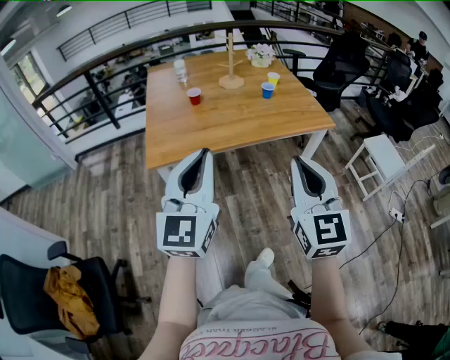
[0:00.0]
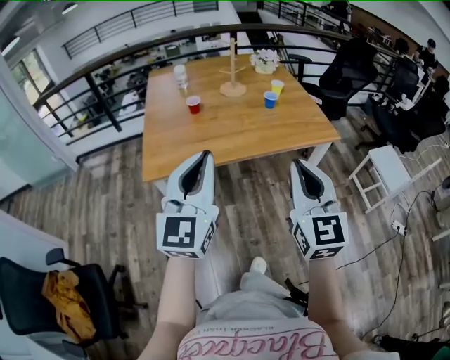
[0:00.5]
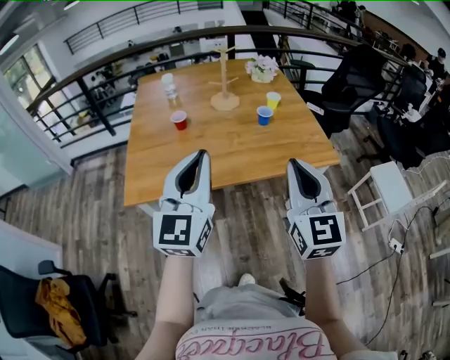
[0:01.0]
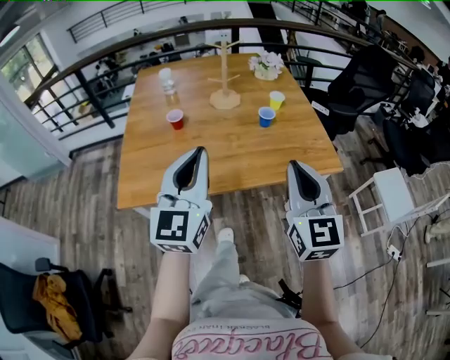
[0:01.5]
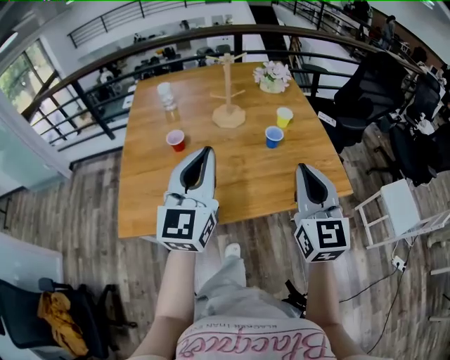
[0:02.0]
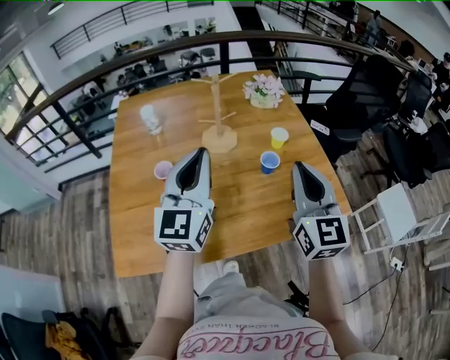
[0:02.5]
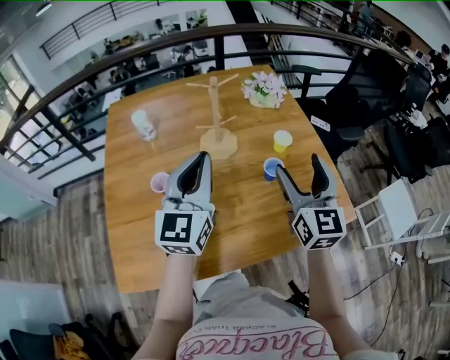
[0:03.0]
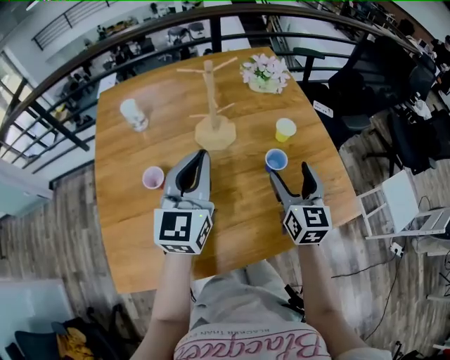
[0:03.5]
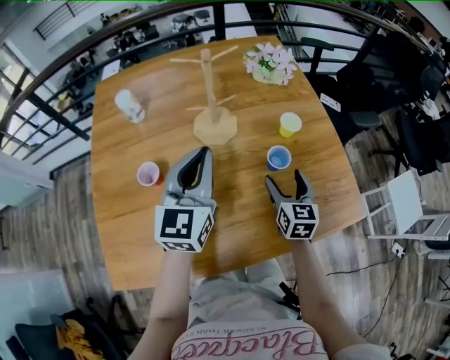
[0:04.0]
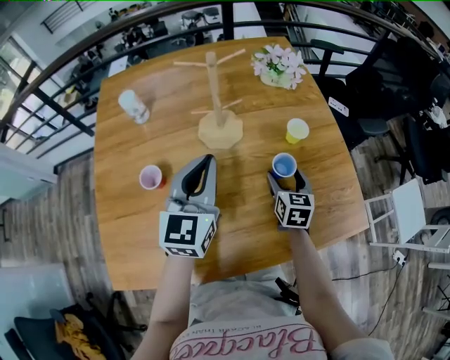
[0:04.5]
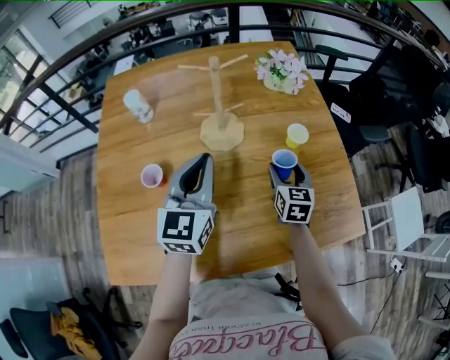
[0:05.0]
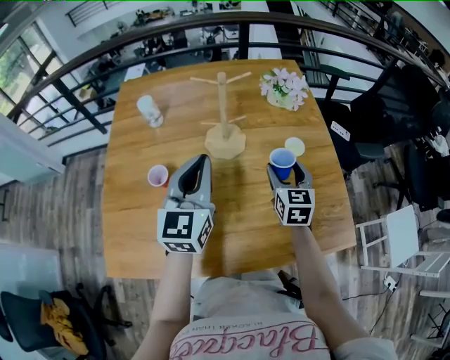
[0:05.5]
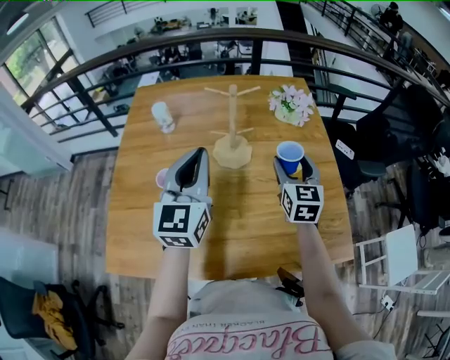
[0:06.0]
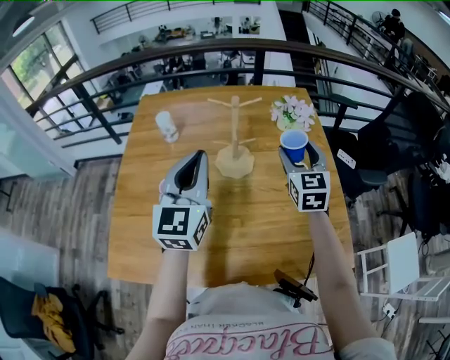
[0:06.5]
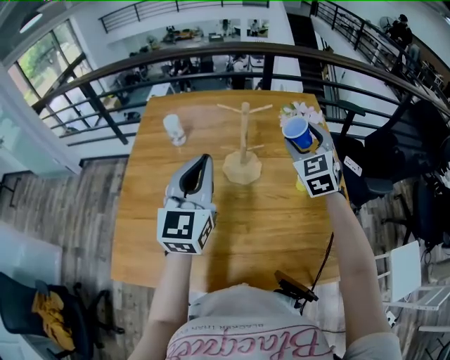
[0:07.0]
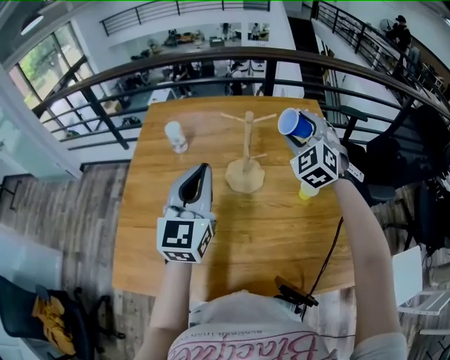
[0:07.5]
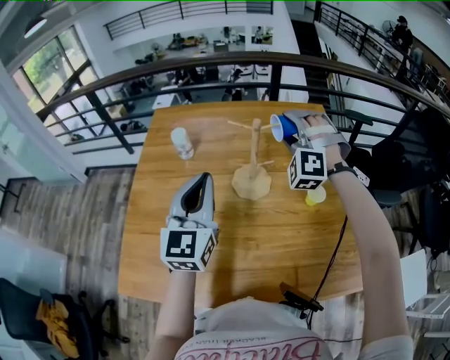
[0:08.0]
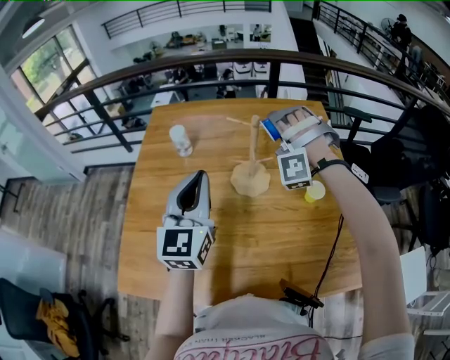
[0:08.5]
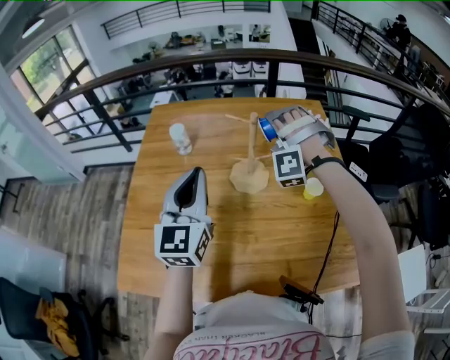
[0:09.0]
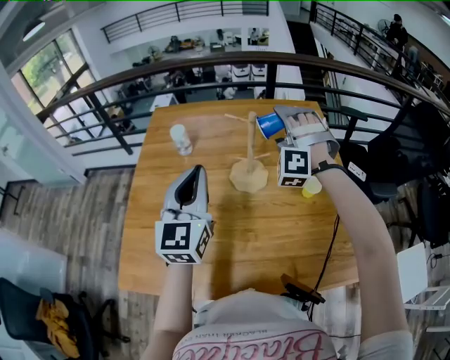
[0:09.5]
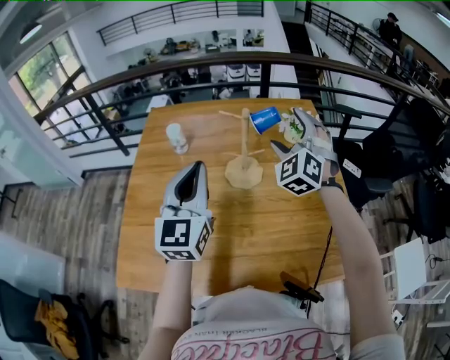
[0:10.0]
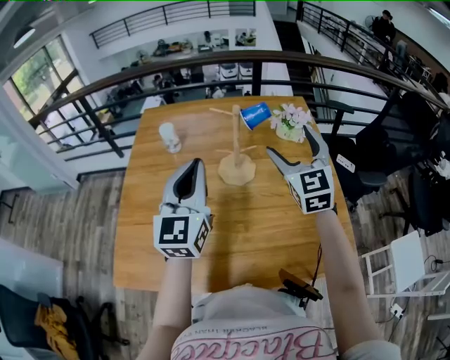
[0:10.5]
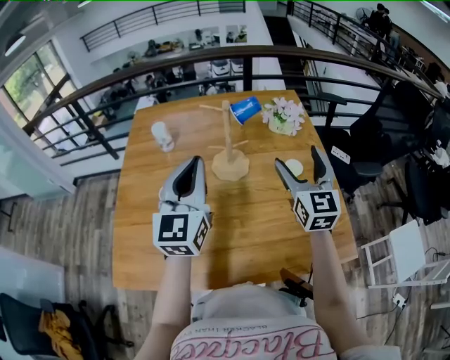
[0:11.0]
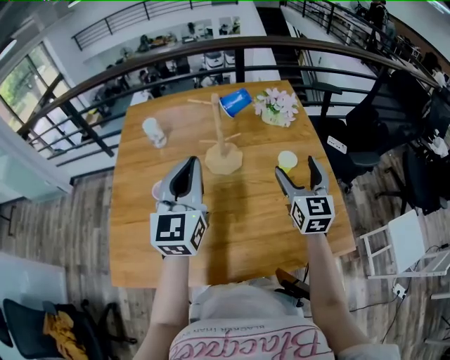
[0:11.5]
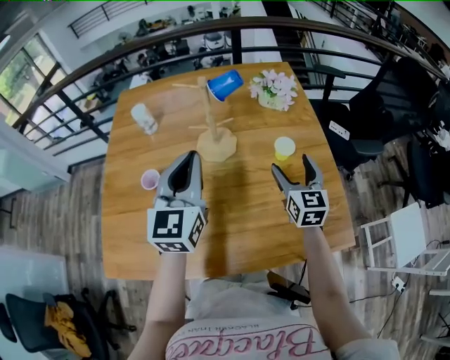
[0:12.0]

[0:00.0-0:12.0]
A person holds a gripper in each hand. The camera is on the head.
0:00.0 to 0:02.0: Both grippers move forward, some 35 cm.
0:02.0 to 0:04.0: The left gripper moves forward, about 25 cm; the right gripper heads forward and downward, covering roughly 35 cm, changes its angle by about 30 degrees, and opens up.
0:04.0 to 0:06.0: The left gripper shifts some 10 cm upward. The right gripper goes some 15 cm upward and forward.
0:06.0 to 0:08.0: The right gripper shifts approximately 20 cm forward, upward and to the left, and rolls counterclockwise, seen from behind, by approximately 90 degrees.
0:08.0 to 0:10.0: The right gripper goes some 5 cm backward, turns by roughly 30 degrees, and opens its fingers.
0:10.0 to 0:12.0: The left gripper is displaced to the right and downward by roughly 10 cm. The right gripper shifts roughly 25 cm downward, to the right and backward, and twists some 60 degrees clockwise, seen from behind.

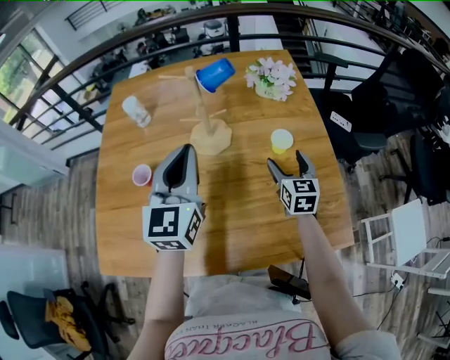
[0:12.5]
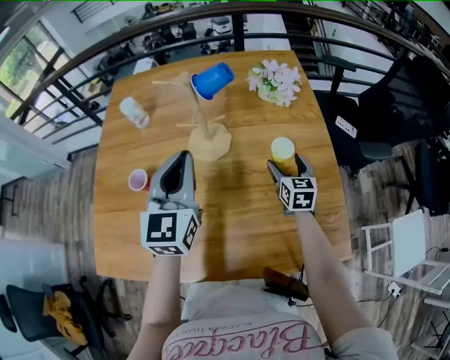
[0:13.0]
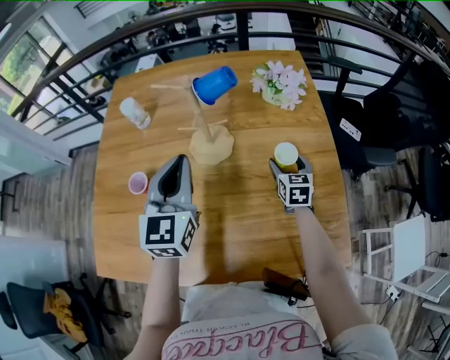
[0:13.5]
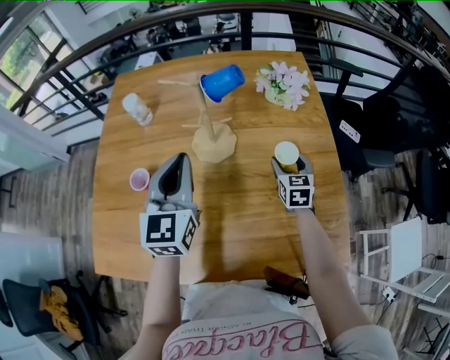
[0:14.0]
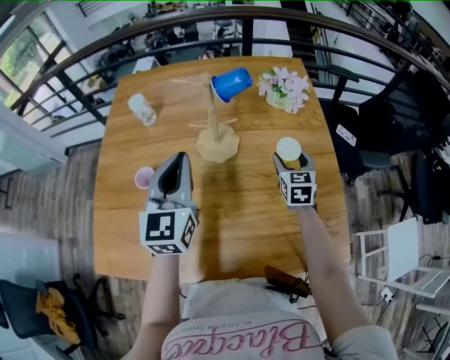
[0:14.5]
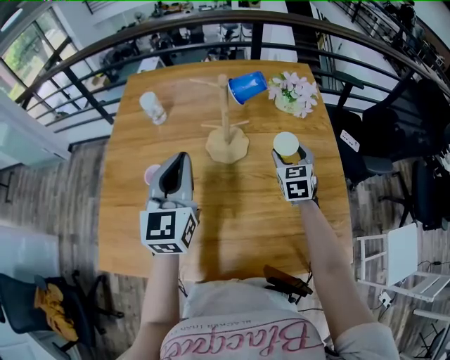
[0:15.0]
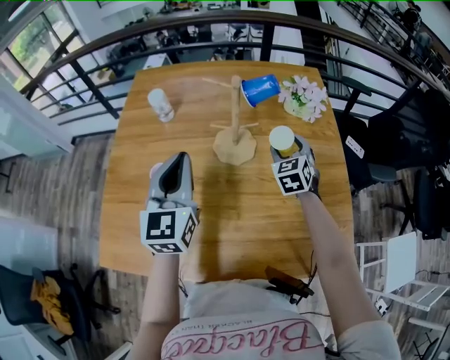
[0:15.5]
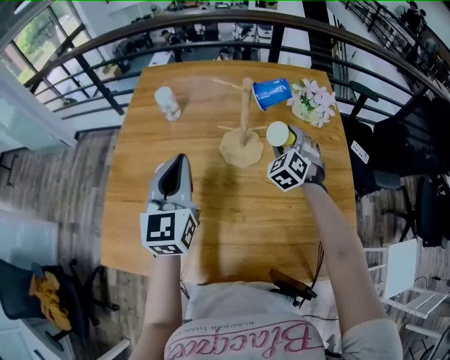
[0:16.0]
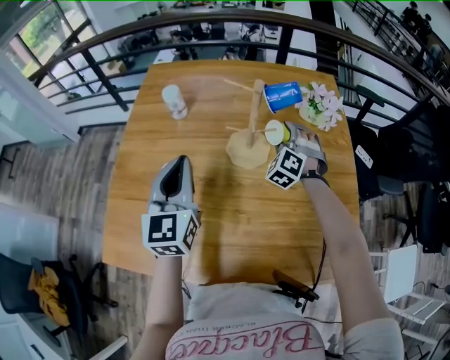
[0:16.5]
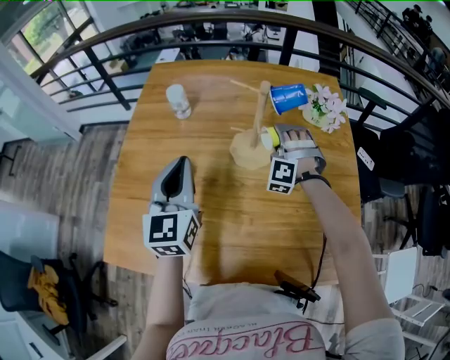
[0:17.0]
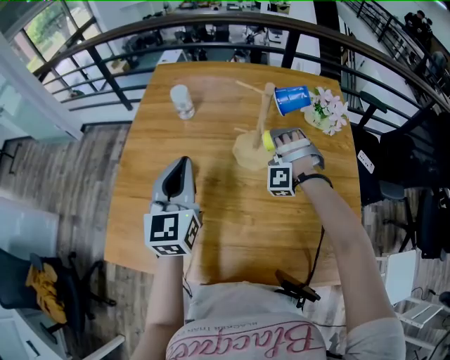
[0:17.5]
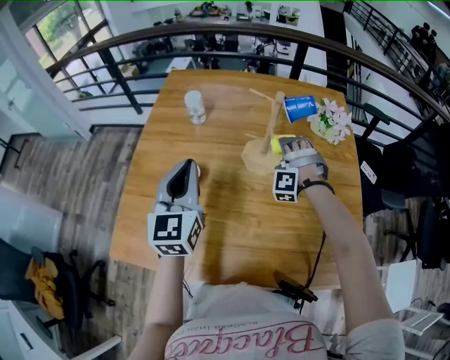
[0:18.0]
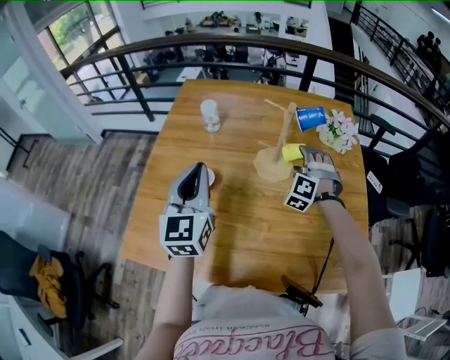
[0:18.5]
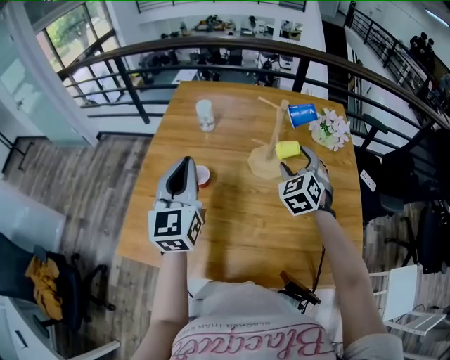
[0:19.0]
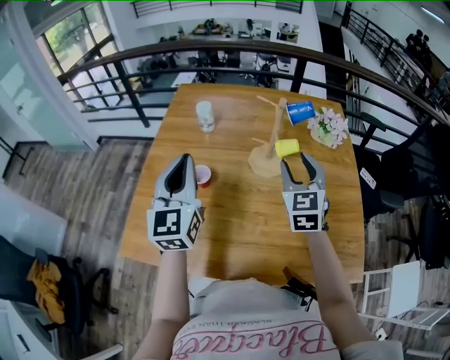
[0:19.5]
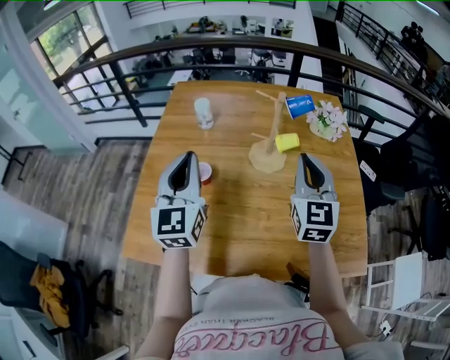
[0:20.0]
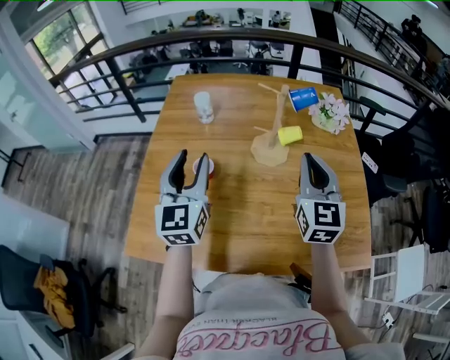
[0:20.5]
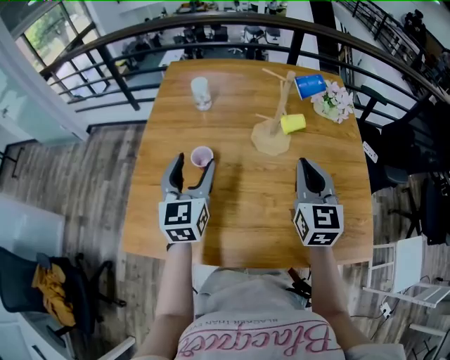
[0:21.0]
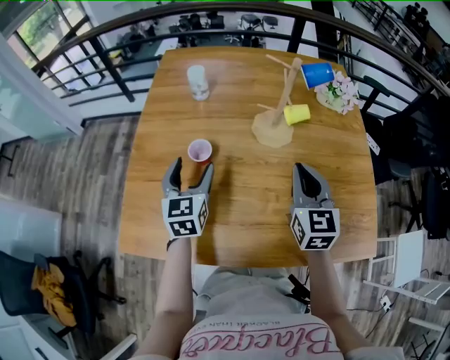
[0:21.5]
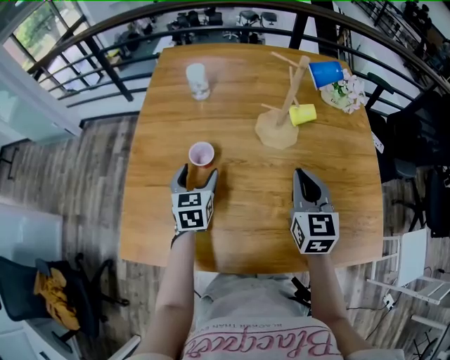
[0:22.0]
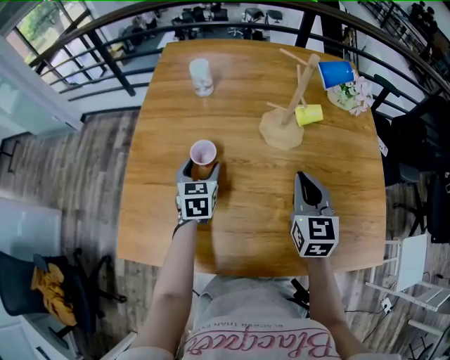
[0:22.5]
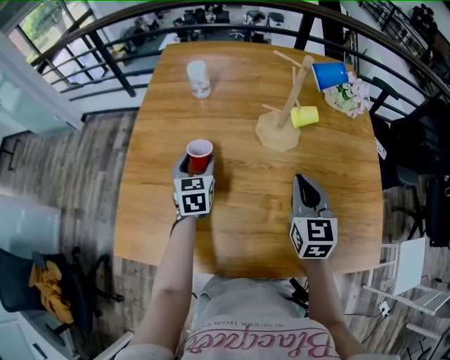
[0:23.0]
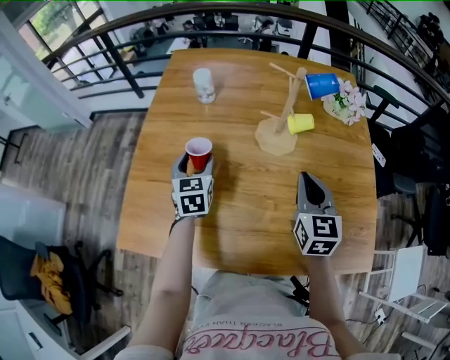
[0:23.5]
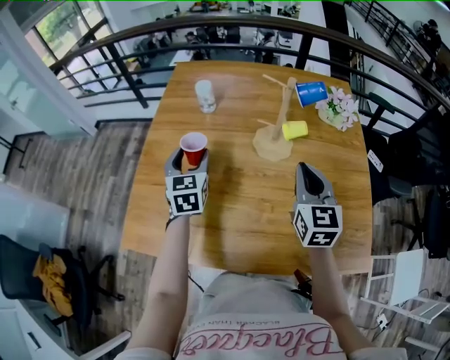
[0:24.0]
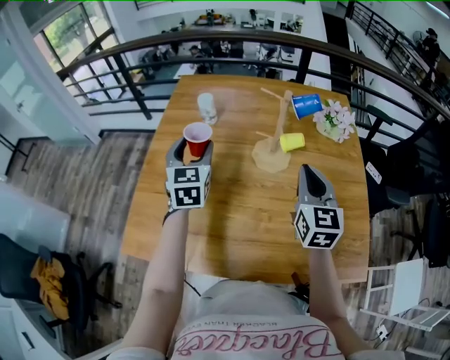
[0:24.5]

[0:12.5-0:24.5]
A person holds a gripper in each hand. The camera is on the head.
0:12.5 to 0:14.5: The right gripper moves forward, roughly 5 cm.
0:14.5 to 0:16.5: The left gripper travels to the left by some 10 cm. The right gripper moves to the left and forward, some 15 cm, and twists about 70 degrees counterclockwise, seen from behind.
0:16.5 to 0:18.5: The left gripper ends up approximately 5 cm from where it was, while the right gripper moves roughly 5 cm.
0:18.5 to 0:20.5: The right gripper shifts some 20 cm upward and backward, rotates around the line of its fingers by about 70 degrees, clockwise from behind, and closes up.
0:20.5 to 0:22.5: The right gripper heads downward, covering approximately 15 cm. Meanwhile the left gripper moves downward, about 25 cm, and points its fingers roughly 30 degrees further downward.
0:22.5 to 0:24.5: The right gripper travels upward by about 10 cm. The left gripper heads upward, covering some 20 cm, and rotates about 20 degrees.

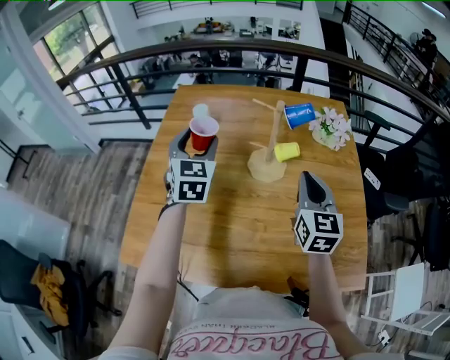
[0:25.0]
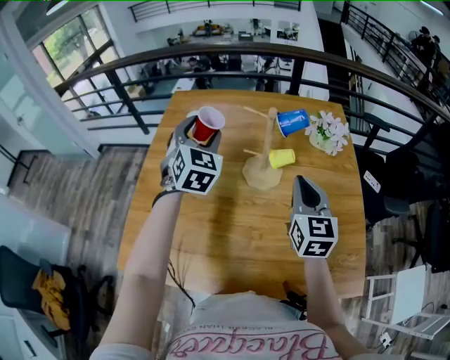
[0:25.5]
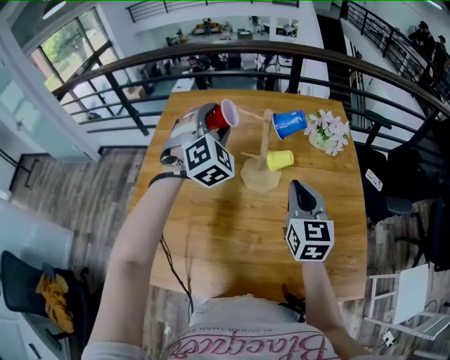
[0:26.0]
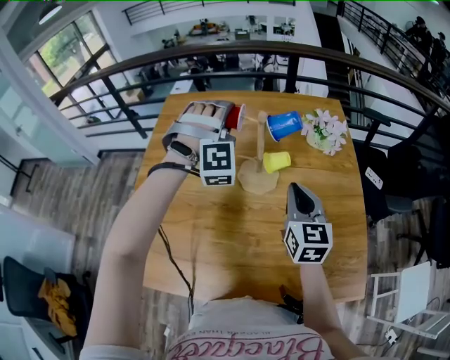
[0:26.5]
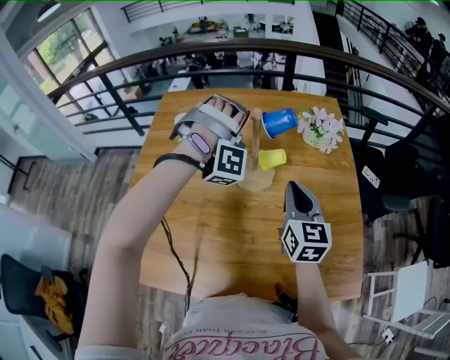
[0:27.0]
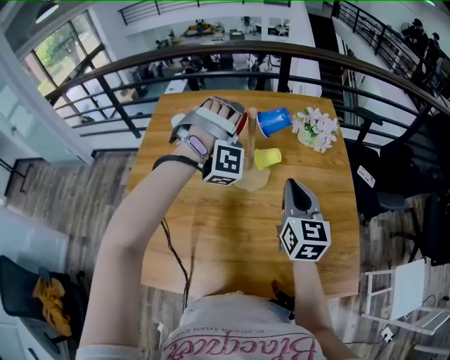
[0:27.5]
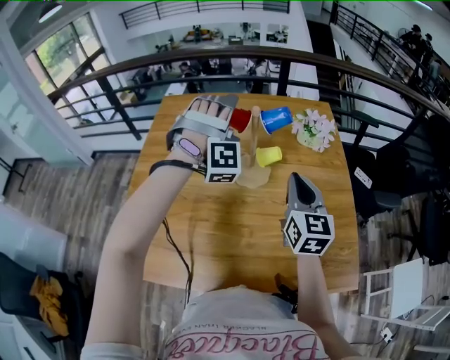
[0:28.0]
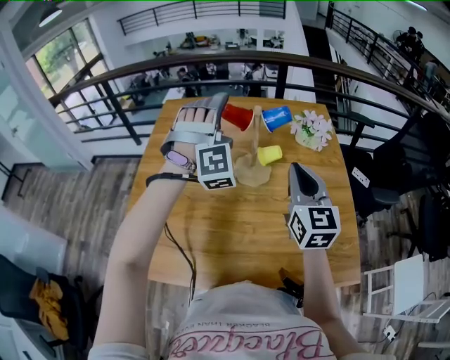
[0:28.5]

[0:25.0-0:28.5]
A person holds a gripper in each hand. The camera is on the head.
0:25.0 to 0:27.0: The left gripper shifts about 20 cm to the right and forward, and twists roughly 110 degrees clockwise, seen from behind.
0:27.0 to 0:28.5: The right gripper goes some 10 cm upward, while the left gripper is displaced backward and upward by some 10 cm, rotates some 40 degrees, and opens its fingers.
